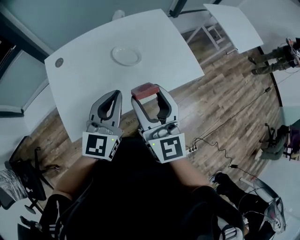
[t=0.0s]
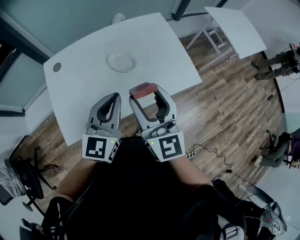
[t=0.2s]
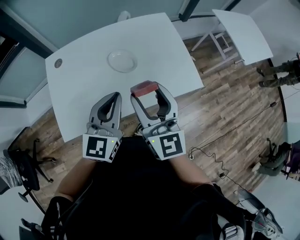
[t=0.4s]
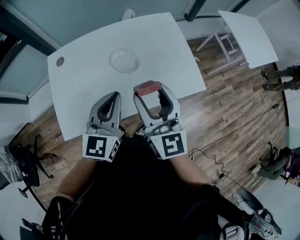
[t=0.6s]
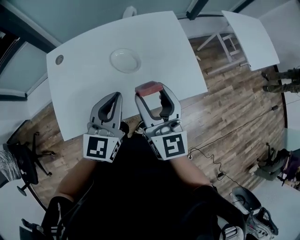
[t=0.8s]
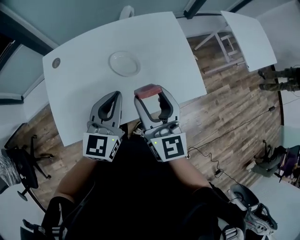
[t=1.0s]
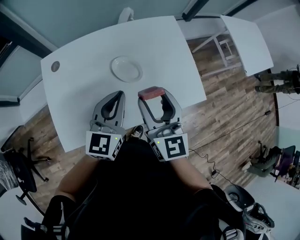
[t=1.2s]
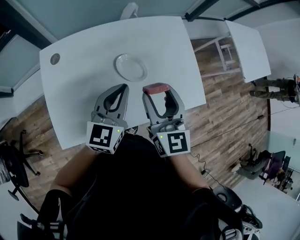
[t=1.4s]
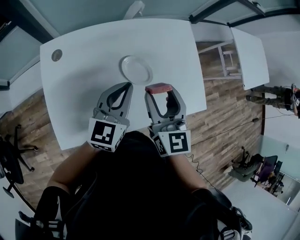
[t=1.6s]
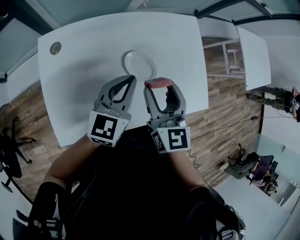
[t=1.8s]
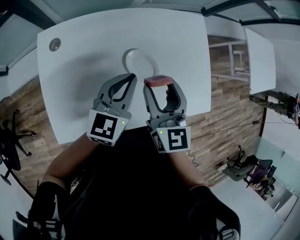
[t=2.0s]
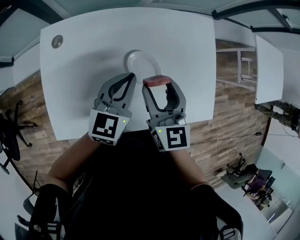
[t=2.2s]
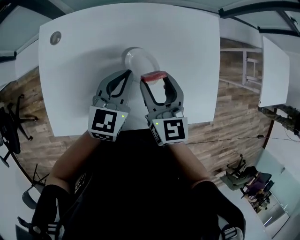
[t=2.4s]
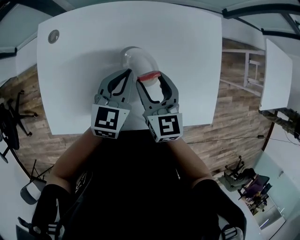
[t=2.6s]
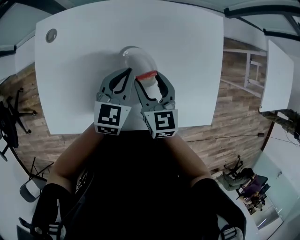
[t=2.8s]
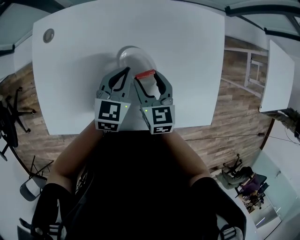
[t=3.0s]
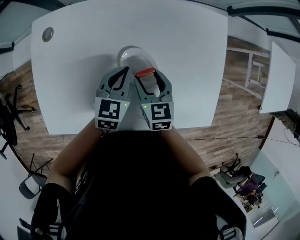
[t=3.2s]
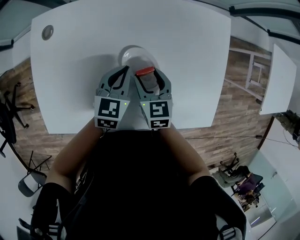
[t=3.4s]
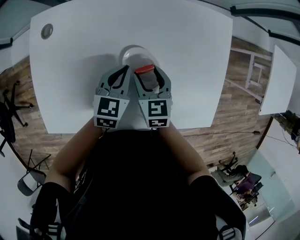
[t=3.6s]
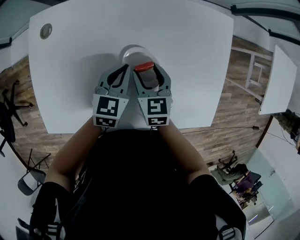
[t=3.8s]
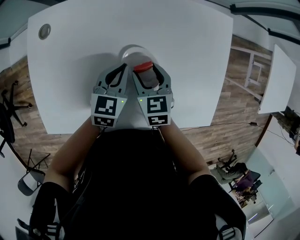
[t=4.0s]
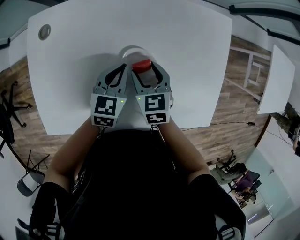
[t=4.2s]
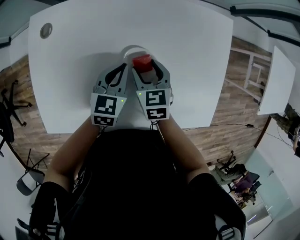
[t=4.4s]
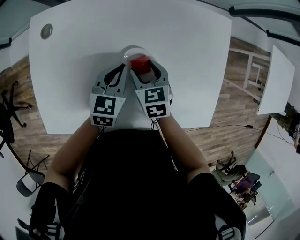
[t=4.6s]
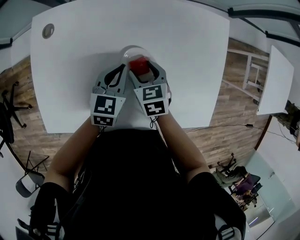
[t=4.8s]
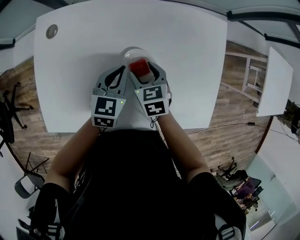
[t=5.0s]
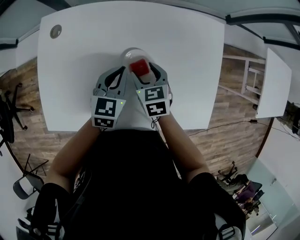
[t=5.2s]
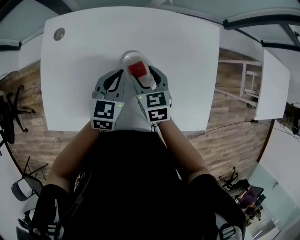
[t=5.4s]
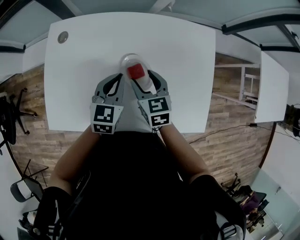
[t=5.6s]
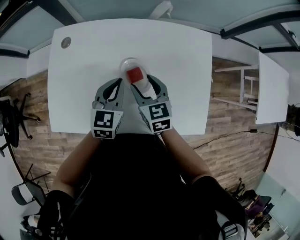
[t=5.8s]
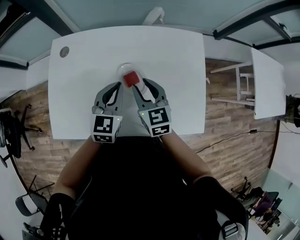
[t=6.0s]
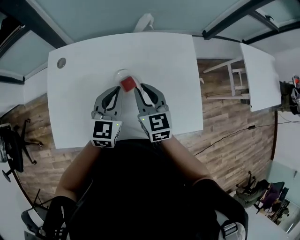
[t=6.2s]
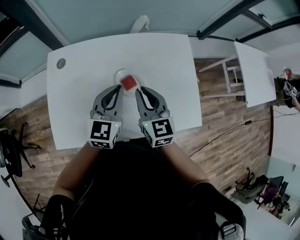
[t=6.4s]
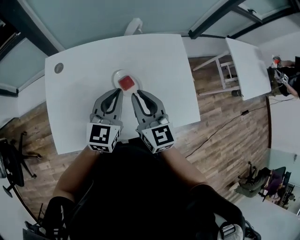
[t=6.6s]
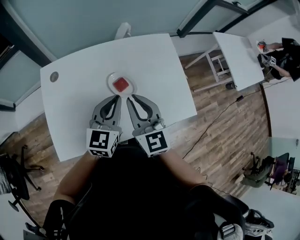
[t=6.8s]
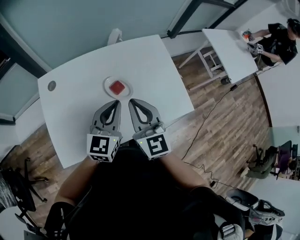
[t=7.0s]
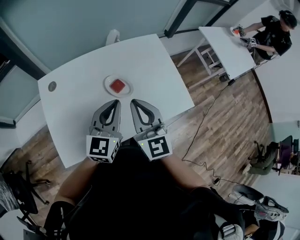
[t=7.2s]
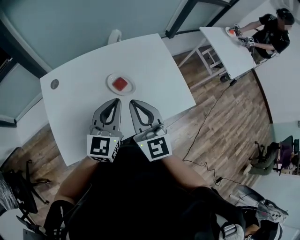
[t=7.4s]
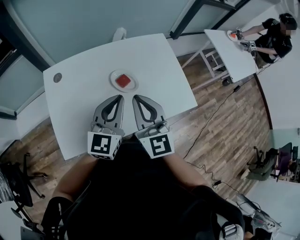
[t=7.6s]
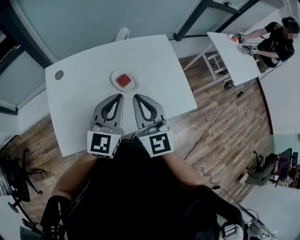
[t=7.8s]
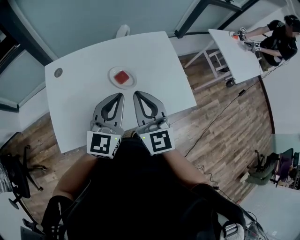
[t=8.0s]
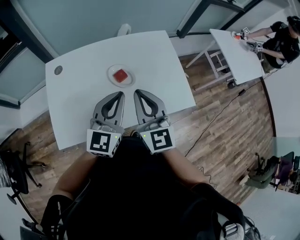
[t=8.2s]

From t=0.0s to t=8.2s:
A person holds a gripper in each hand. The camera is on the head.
From t=0.0s to t=1.6s: Both grippers move forward, about 15 cm.
From t=1.6s to t=3.2s: Both grippers move downward and forward, approximately 20 cm. The right gripper changes its angle by some 30 degrees; the left gripper swivels roughly 30 degrees.
From t=3.2s to t=5.0s: The grippers move only a little.
From t=5.0s to t=6.6s: The grippers both shift upward and backward by roughly 20 cm. The left gripper changes its angle by approximately 20 degrees. The right gripper tips its fingers upward by approximately 40 degrees, and closes up.
From t=6.6s to t=8.2s: The left gripper is displaced backward, to the right and upward by some 10 cm, while the right gripper is displaced backward and upward by approximately 10 cm.

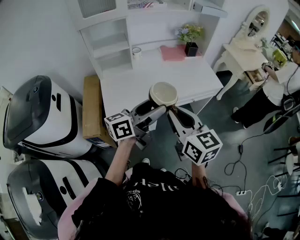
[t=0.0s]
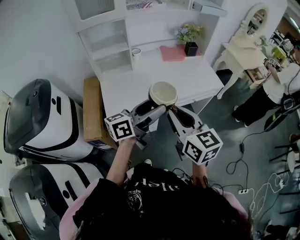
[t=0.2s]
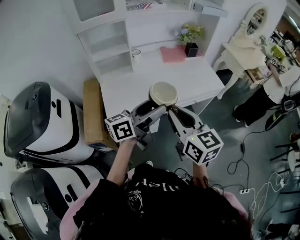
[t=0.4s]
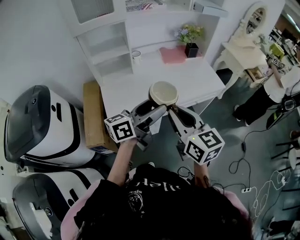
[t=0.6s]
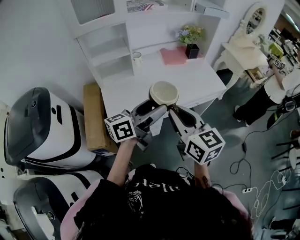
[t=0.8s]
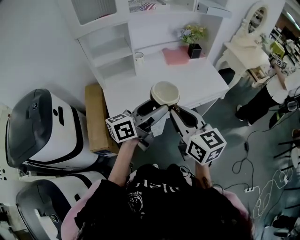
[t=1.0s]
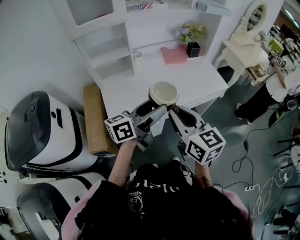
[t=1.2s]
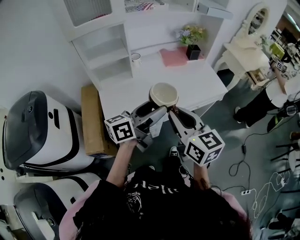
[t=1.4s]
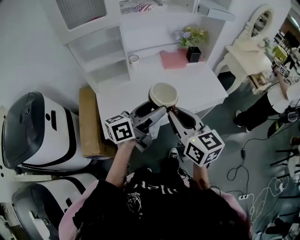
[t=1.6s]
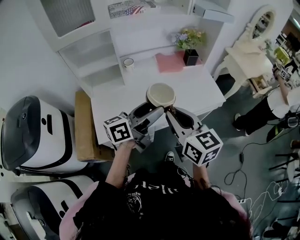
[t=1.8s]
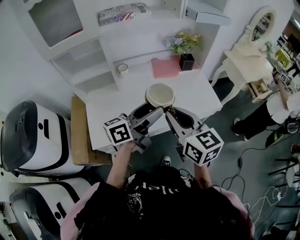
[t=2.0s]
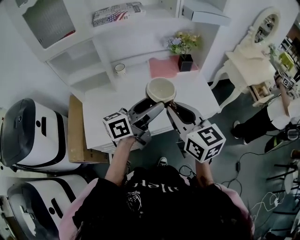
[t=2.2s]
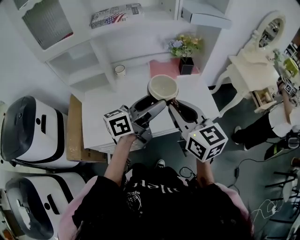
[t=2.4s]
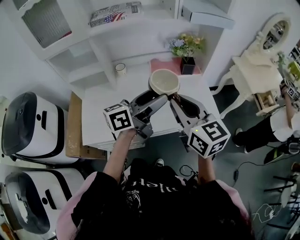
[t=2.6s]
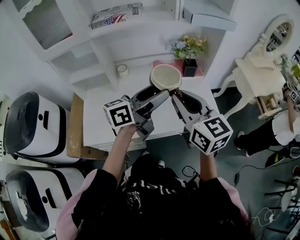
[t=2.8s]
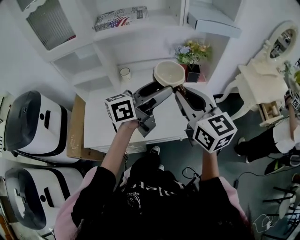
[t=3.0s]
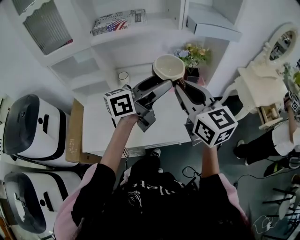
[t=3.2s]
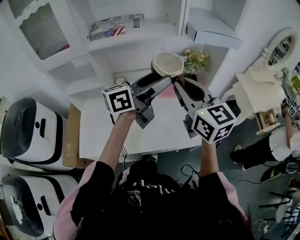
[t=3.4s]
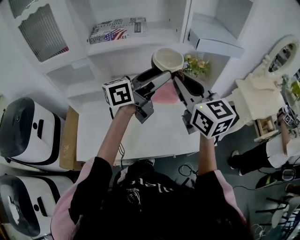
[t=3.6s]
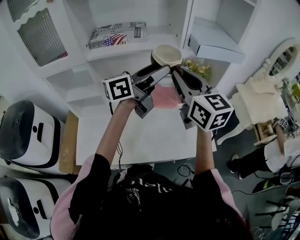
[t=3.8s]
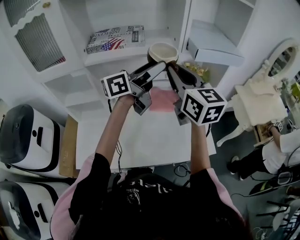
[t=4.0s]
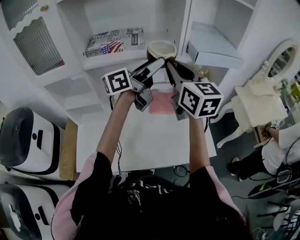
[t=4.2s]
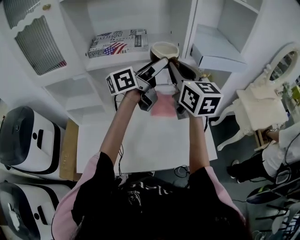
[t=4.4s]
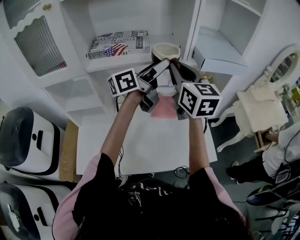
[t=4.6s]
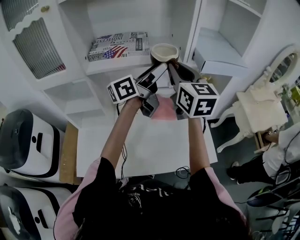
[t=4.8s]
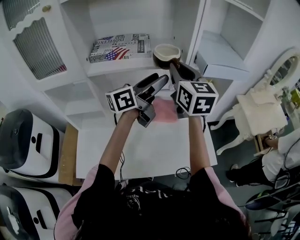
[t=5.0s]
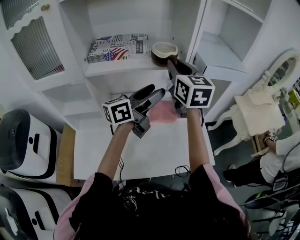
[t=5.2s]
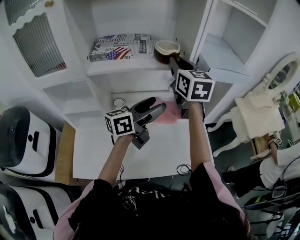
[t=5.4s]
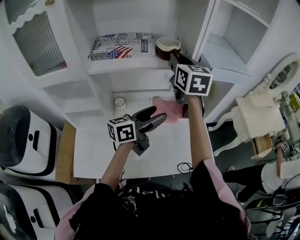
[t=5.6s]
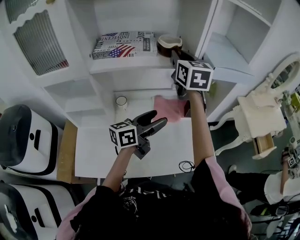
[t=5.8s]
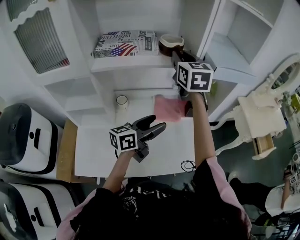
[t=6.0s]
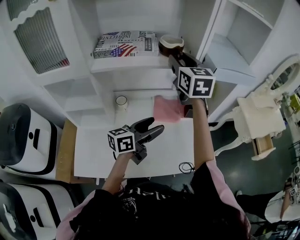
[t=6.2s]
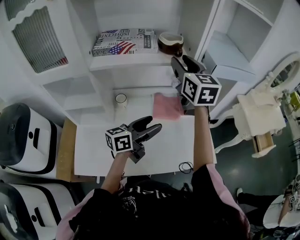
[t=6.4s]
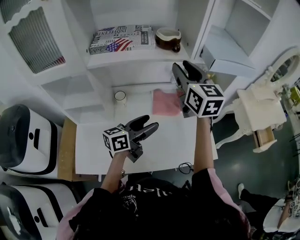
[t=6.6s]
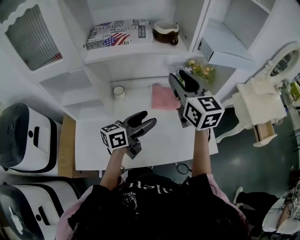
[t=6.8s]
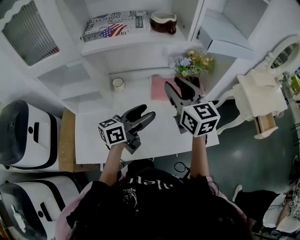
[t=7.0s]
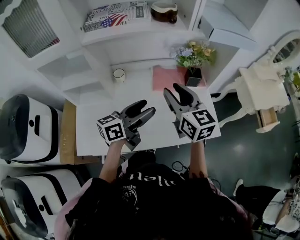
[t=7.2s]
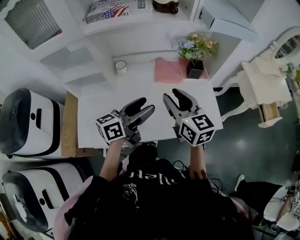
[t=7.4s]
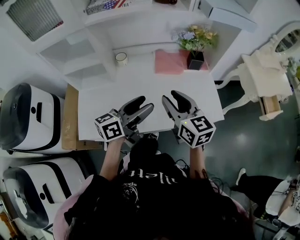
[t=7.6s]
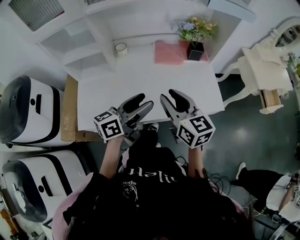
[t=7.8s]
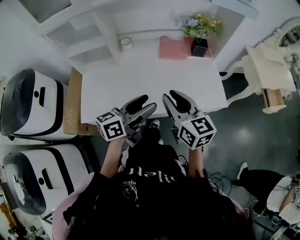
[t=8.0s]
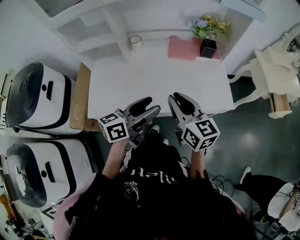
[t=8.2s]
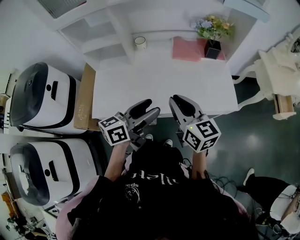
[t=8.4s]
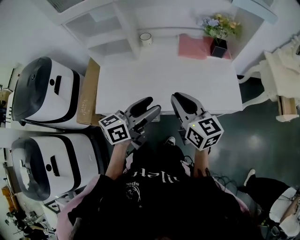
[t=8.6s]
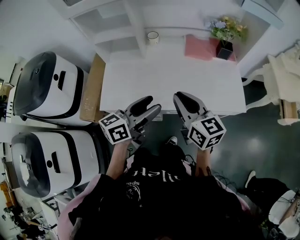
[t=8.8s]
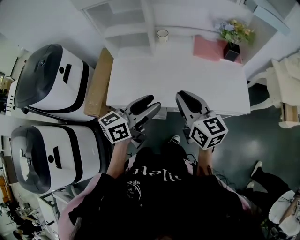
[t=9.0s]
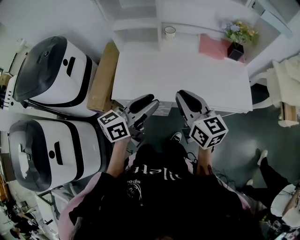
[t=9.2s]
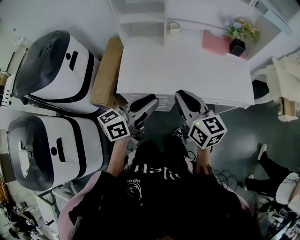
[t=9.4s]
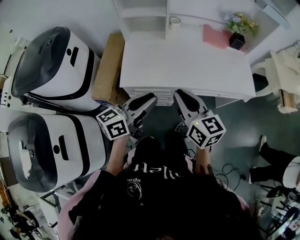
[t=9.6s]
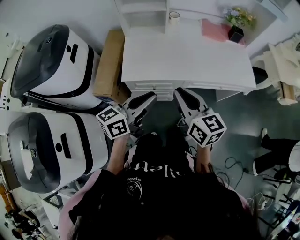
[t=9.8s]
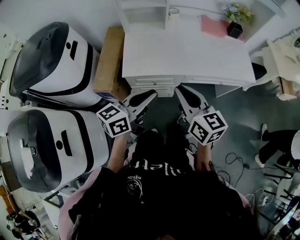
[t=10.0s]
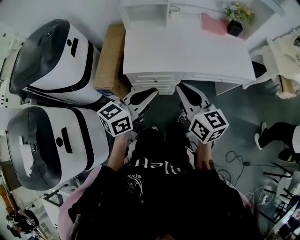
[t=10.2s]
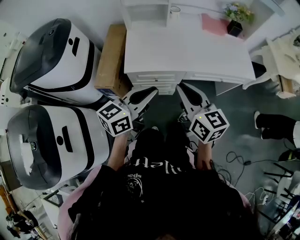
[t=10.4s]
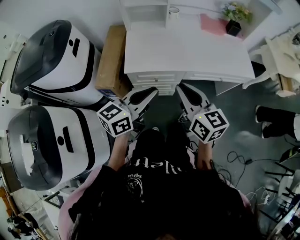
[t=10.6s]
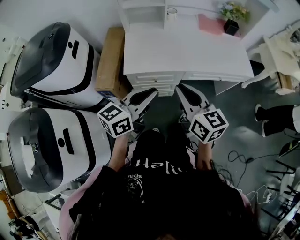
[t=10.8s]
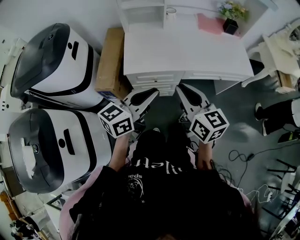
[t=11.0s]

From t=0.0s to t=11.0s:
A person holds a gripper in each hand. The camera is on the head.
From t=0.0s to t=1.6s: The grippers both shift forward by about 15 cm.
From t=1.6s to t=3.2s: The two grippers go approximately 30 cm forward and to the right.
From t=3.2s to t=4.8s: The grippers both shift forward by roughly 20 cm.
From t=4.8s to t=6.2s: The right gripper shifts roughly 5 cm forward, and opens its fingers. The left gripper shifts approximately 20 cm downward and backward.
From t=6.2s to t=7.8s: The left gripper moves backward, approximately 20 cm; the right gripper goes some 40 cm backward and downward, and rotates some 20 degrees.
From t=7.8s to t=9.4s: Both grippers move to the left and backward, some 30 cm. The right gripper closes its fingers, while the left gripper closes up.
From t=9.4s to t=11.0s: The grippers both shift backward by about 15 cm.

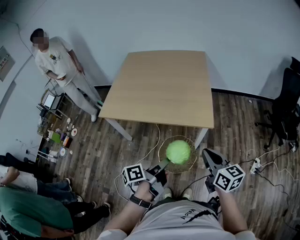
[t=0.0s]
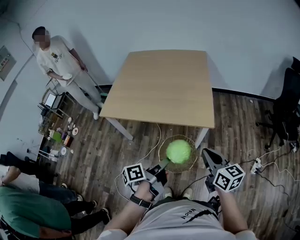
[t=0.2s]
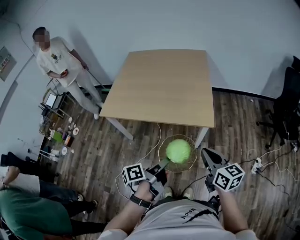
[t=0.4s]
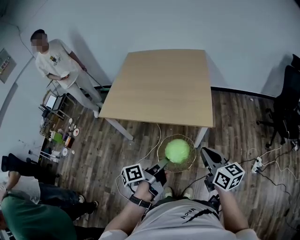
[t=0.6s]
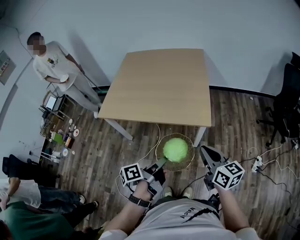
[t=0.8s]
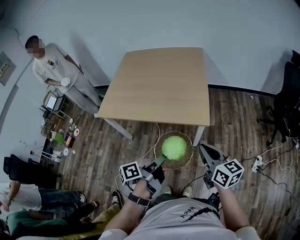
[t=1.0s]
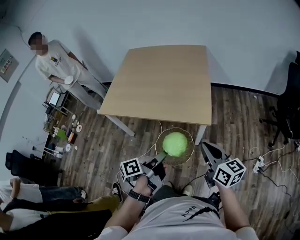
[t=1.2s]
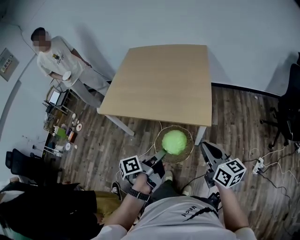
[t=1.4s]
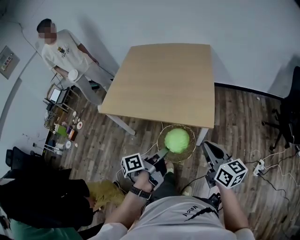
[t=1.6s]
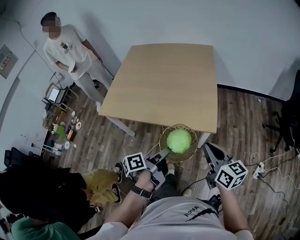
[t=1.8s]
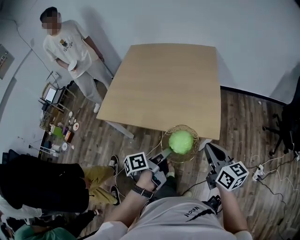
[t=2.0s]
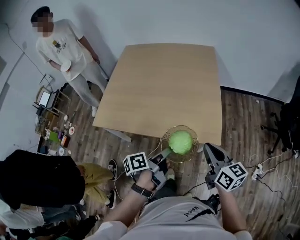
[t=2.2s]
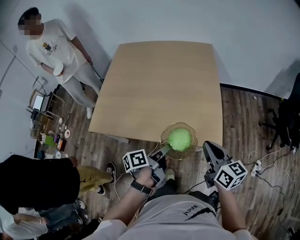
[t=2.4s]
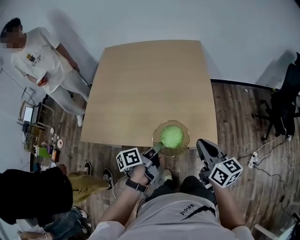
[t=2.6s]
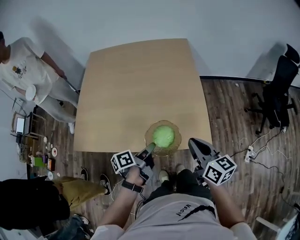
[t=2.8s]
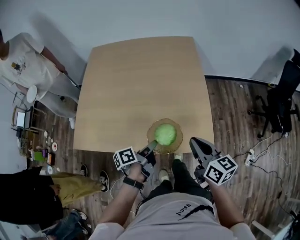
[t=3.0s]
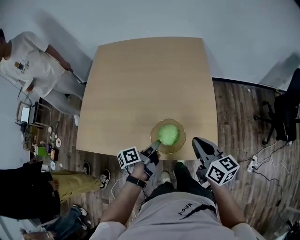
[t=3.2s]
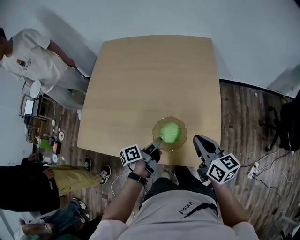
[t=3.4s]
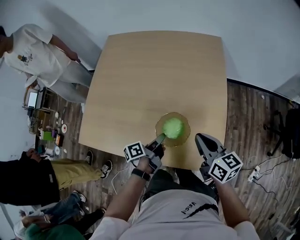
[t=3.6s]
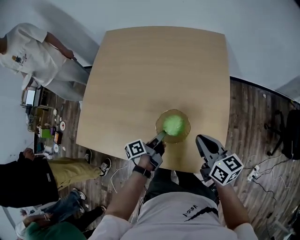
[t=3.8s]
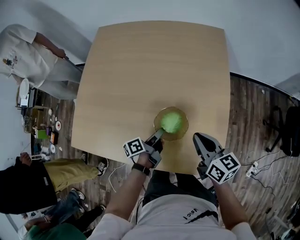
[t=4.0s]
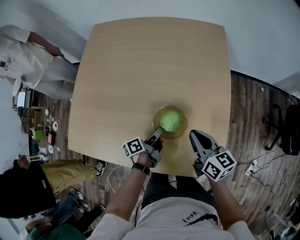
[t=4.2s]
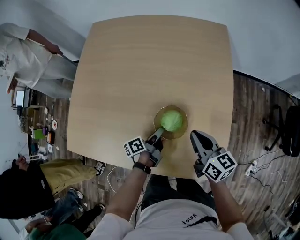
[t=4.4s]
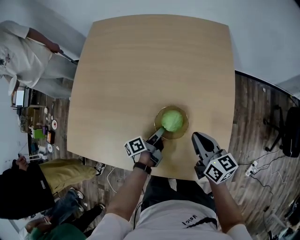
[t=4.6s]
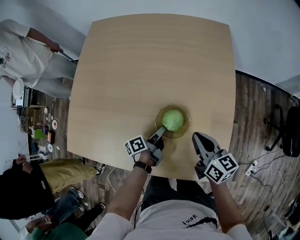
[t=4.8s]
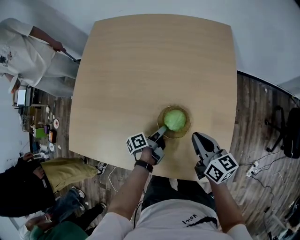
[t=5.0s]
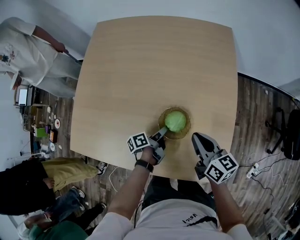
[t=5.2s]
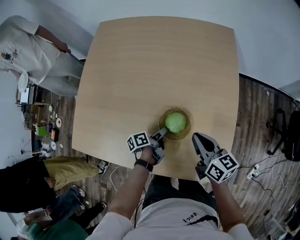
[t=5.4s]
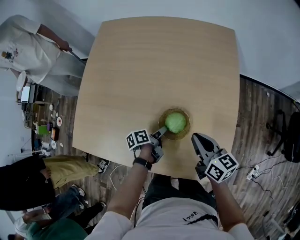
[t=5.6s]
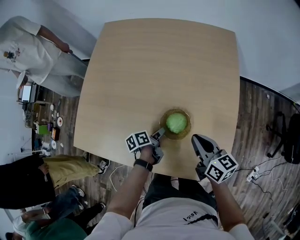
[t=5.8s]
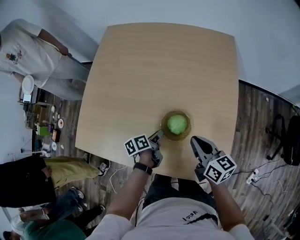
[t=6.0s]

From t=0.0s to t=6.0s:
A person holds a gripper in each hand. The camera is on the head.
From t=0.0s to t=1.6s: The right gripper moves approximately 5 cm.
From t=1.6s to t=3.0s: The right gripper shifts by roughly 30 cm.
From t=3.0s to t=4.4s: The right gripper ends up about 25 cm from where it was.
